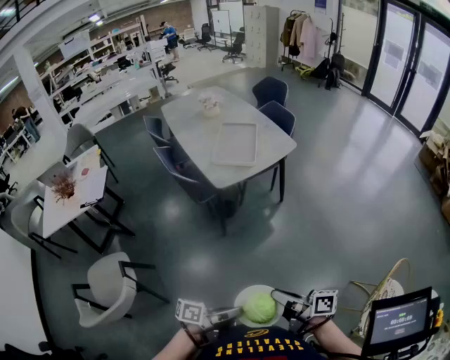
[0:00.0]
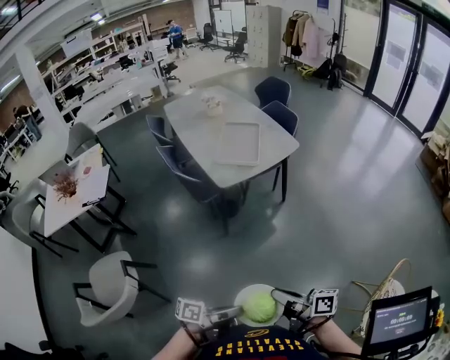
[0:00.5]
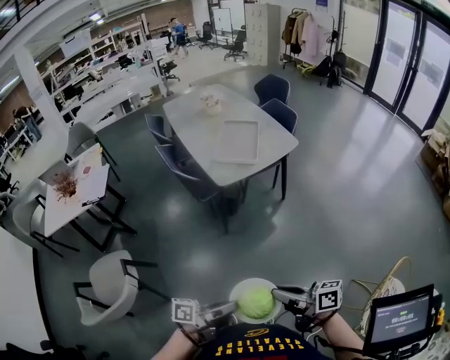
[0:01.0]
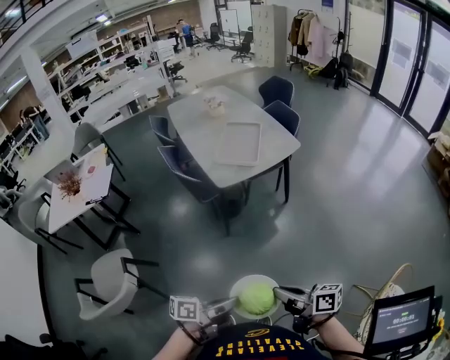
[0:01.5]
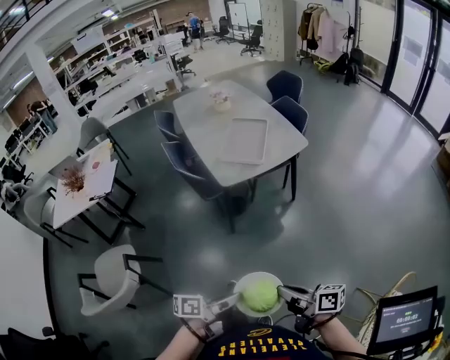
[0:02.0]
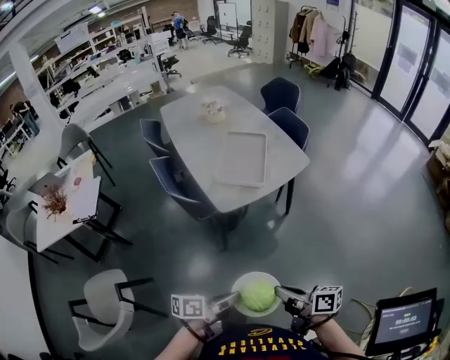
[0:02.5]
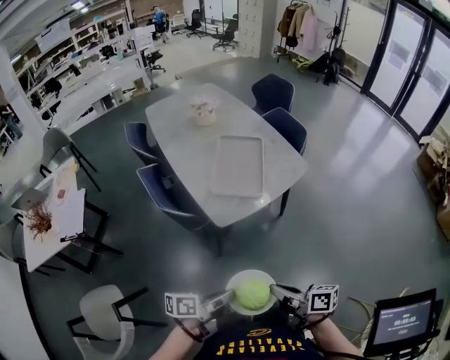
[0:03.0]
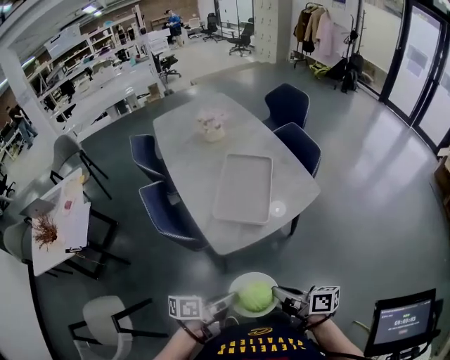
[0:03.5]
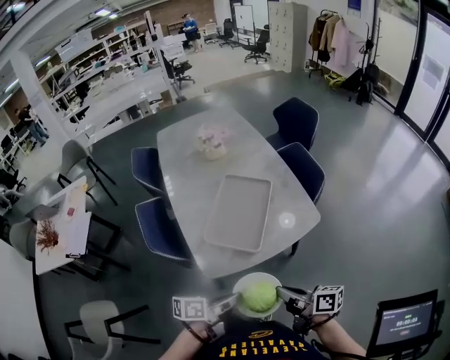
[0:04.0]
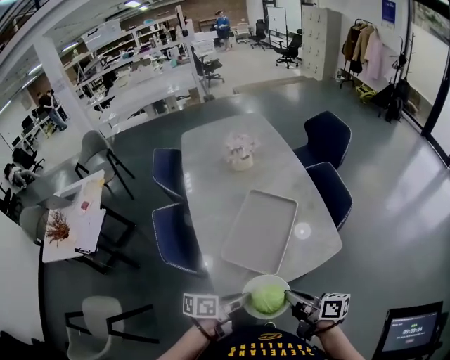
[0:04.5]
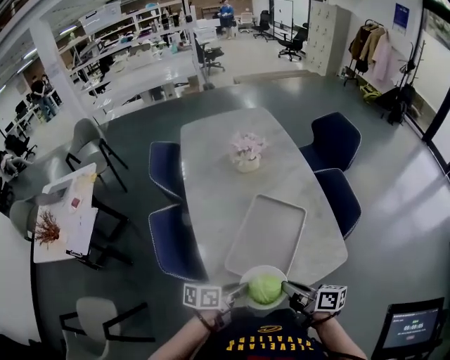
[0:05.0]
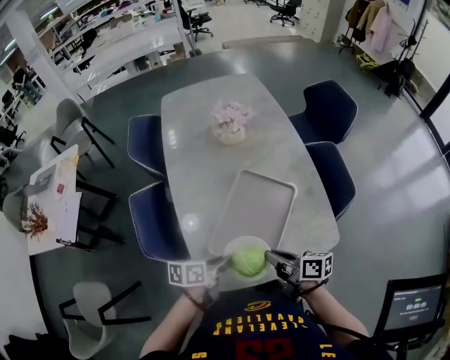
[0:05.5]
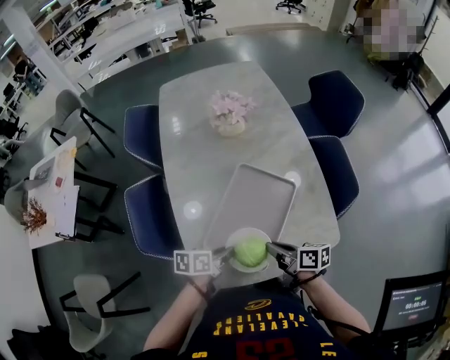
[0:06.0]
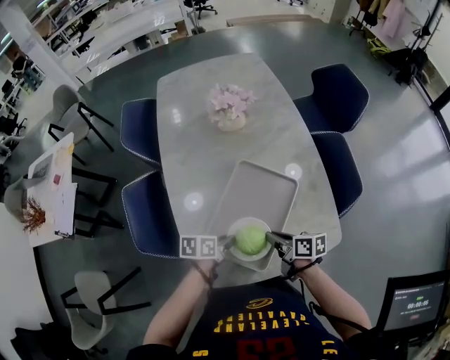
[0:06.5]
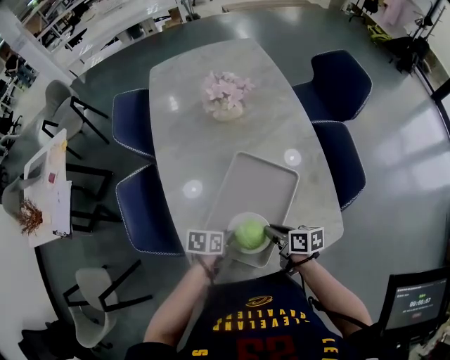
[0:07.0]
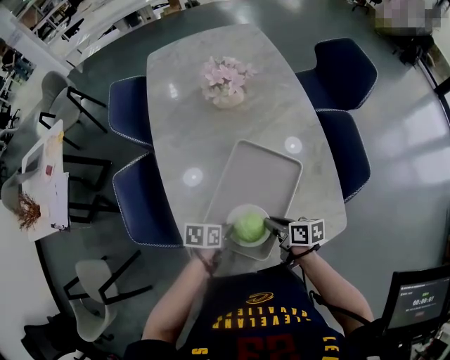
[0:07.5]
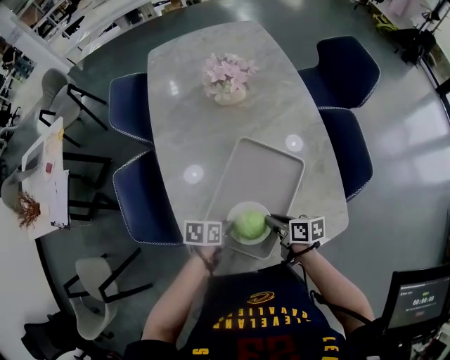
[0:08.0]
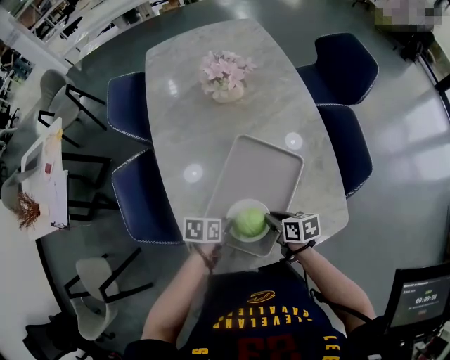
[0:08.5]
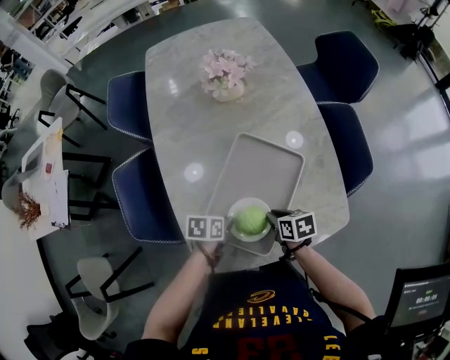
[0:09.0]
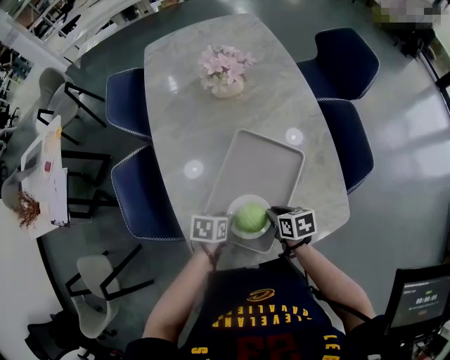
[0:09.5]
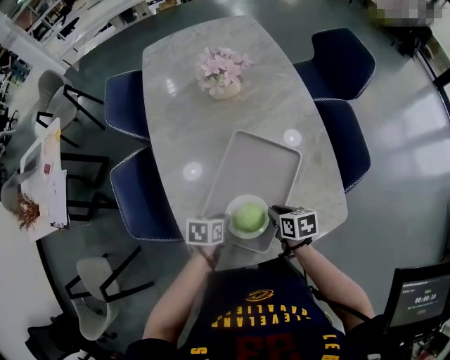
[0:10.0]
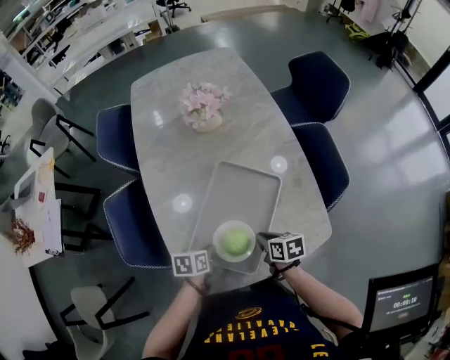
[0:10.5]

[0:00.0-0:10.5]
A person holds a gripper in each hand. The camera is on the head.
0:00.0 to 0:02.0: The right gripper ends up approximately 10 cm from where it was; the left gripper changes place by roughly 10 cm.
0:02.0 to 0:04.0: The pair of grippers is taken forward, about 50 cm.
0:04.0 to 0:06.5: The left gripper heads forward and downward, covering roughly 35 cm, and changes its angle by about 30 degrees; the right gripper travels forward by approximately 35 cm, and swivels some 20 degrees.
0:06.5 to 0:08.5: Both grippers travel together downward, roughly 5 cm.
0:08.5 to 0:10.5: The grippers move only a little.

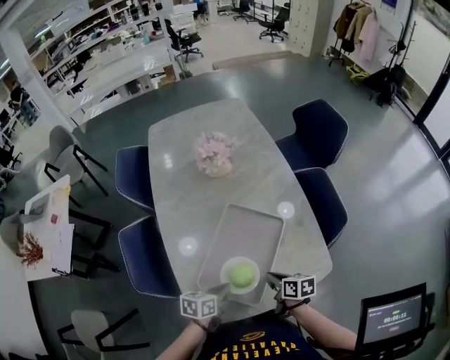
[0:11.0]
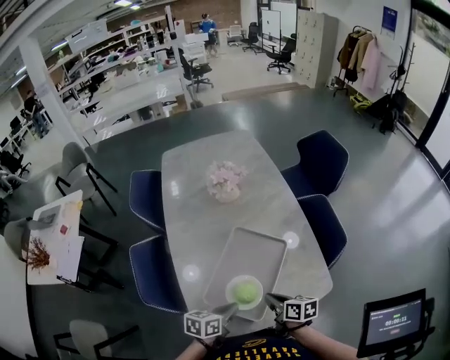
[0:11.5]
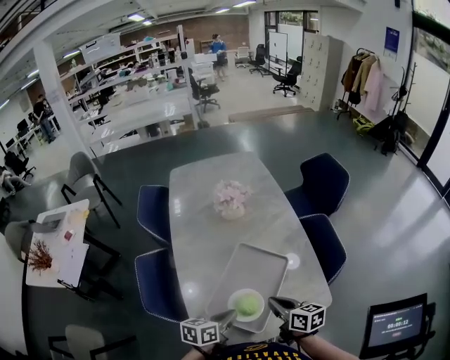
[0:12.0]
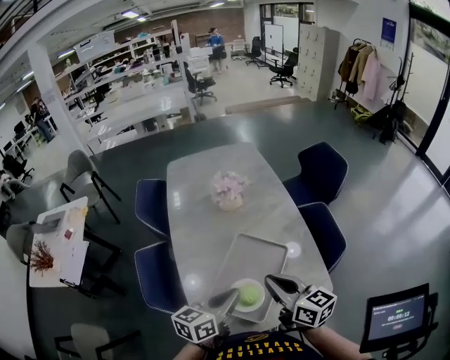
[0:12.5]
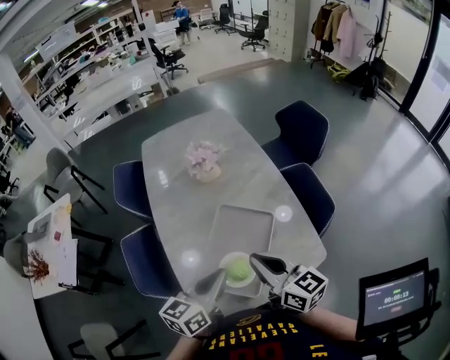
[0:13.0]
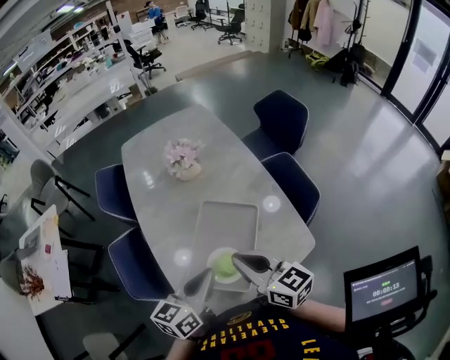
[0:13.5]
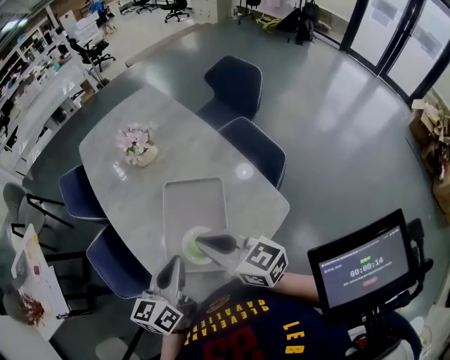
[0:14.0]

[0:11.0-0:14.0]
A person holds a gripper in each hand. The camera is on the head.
0:11.0 to 0:12.5: Both grippers travel together upward, roughly 25 cm. The right gripper points its fingers about 30 degrees further upward. Meanwhile the left gripper swivels about 30 degrees.
0:12.5 to 0:14.0: The grippers stay close to where they were, moving slightly.

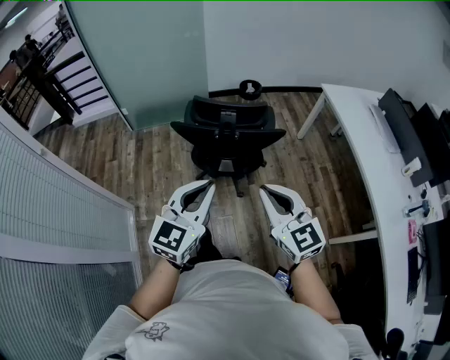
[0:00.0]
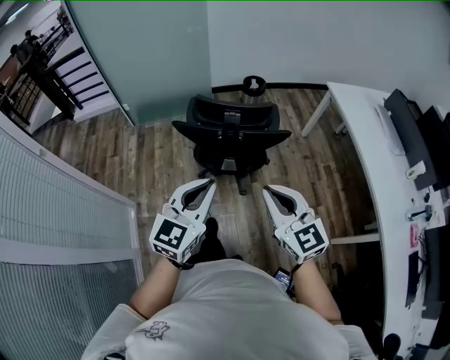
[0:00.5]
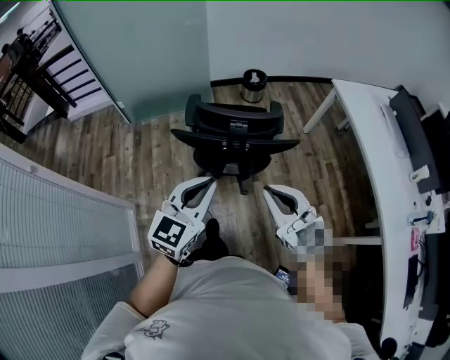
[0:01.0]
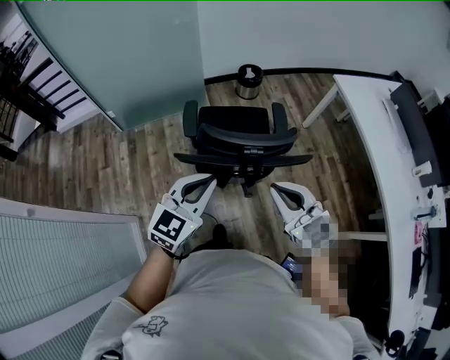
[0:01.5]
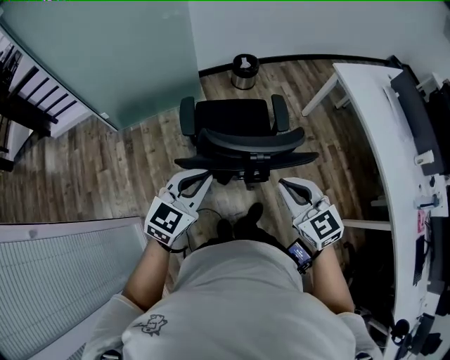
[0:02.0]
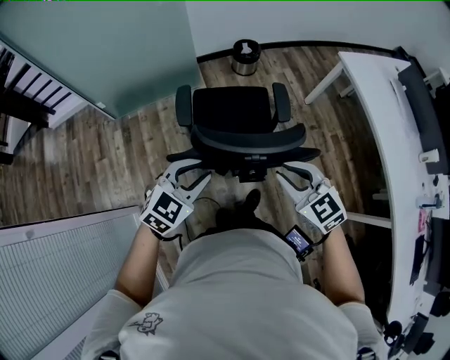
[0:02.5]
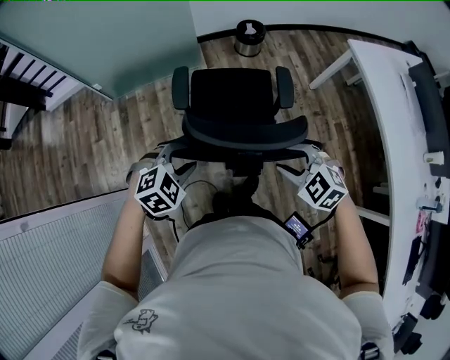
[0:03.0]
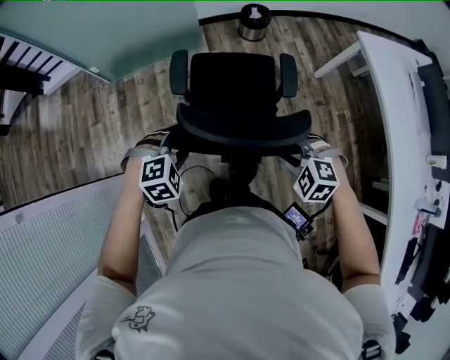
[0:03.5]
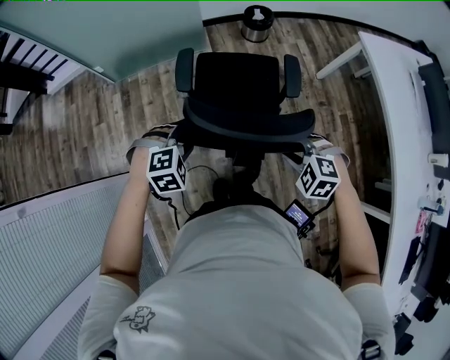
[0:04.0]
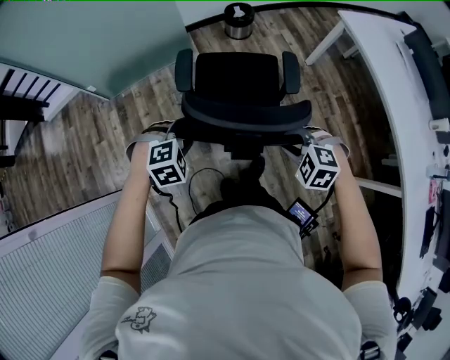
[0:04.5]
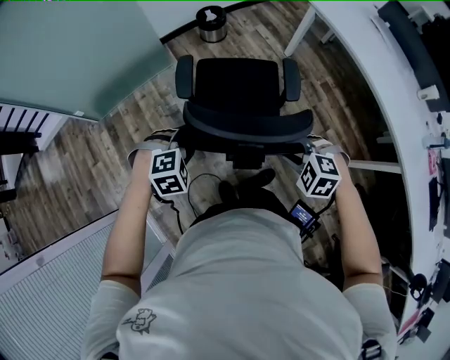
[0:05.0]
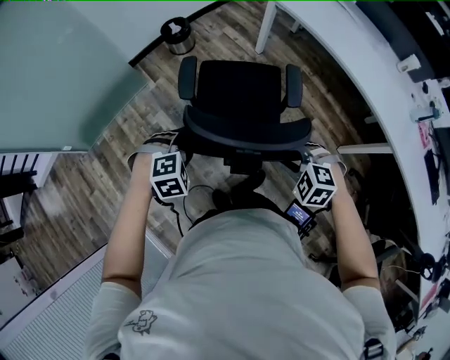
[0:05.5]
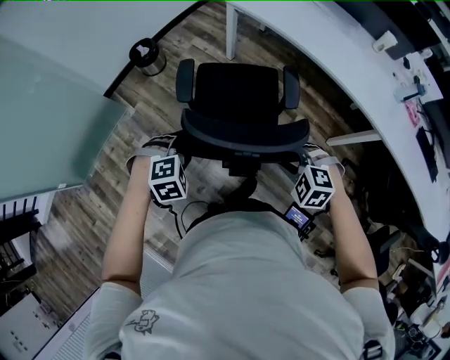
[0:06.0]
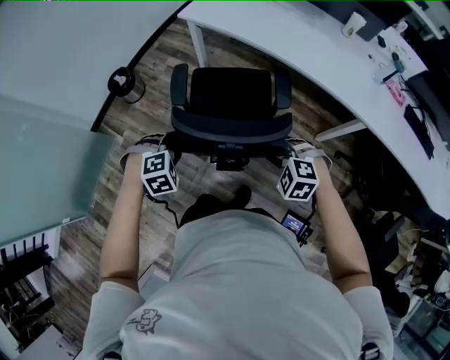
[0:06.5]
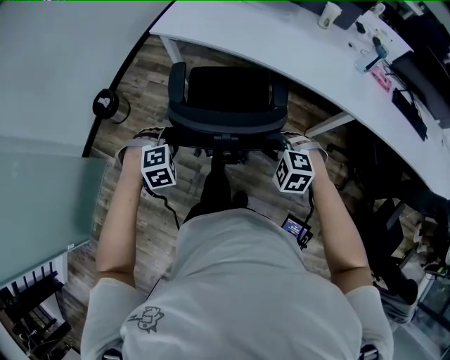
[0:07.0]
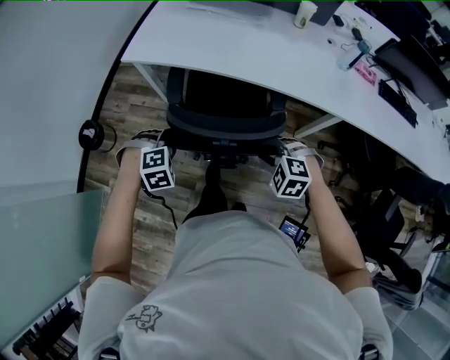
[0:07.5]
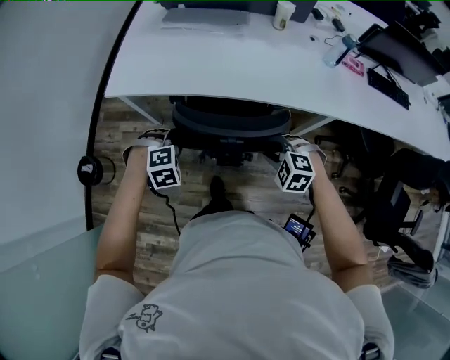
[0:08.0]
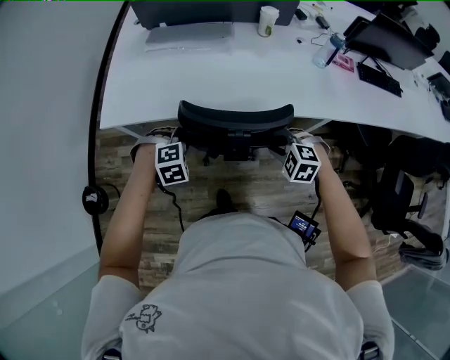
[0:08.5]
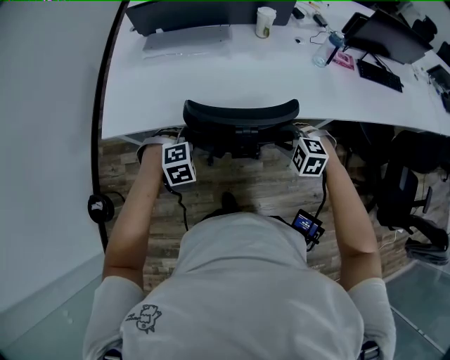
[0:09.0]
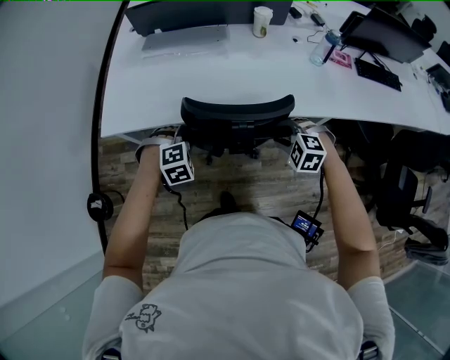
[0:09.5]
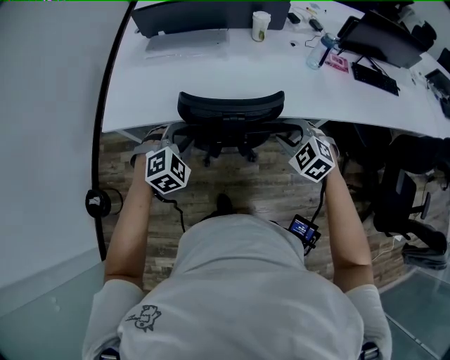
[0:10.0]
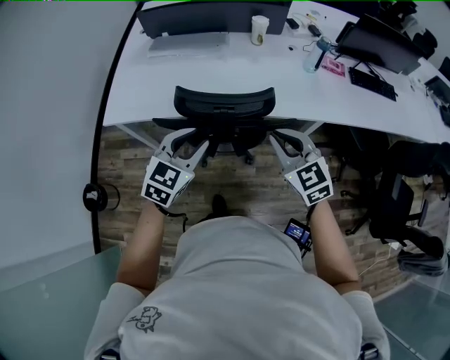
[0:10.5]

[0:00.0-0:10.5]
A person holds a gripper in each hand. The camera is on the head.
0:00.0 to 0:02.0: Both grippers move forward, roughly 30 cm. The left gripper rotates about 20 degrees.
0:02.0 to 0:04.0: Both grippers move downward, roughly 20 cm. The left gripper tips its fingers downward by about 50 degrees, and opens. The right gripper points its fingers approximately 40 degrees further downward, and opens its fingers.
0:04.0 to 0:06.5: The left gripper ends up roughly 50 cm from where it was, and rotates around the line of its fingers by roughly 40 degrees, clockwise from behind. Meanwhile the right gripper moves some 40 cm, and turns by roughly 40 degrees.
0:06.5 to 0:08.5: The left gripper moves roughly 50 cm, and rotates some 30 degrees. Meanwhile the right gripper ends up roughly 40 cm from where it was, and rotates approximately 30 degrees.
0:08.5 to 0:10.5: The right gripper heads upward, covering some 20 cm, and tilts its fingers roughly 40 degrees upward. The left gripper travels upward, to the right and backward by about 25 cm, and tips its fingers upward by about 40 degrees.

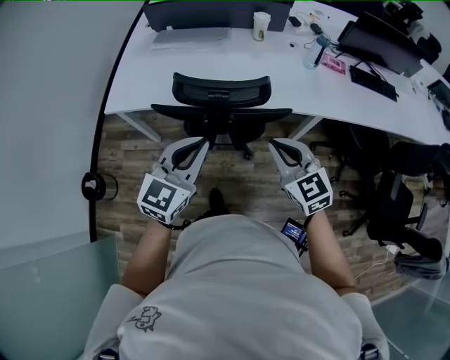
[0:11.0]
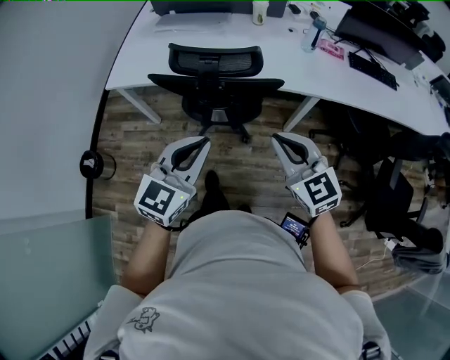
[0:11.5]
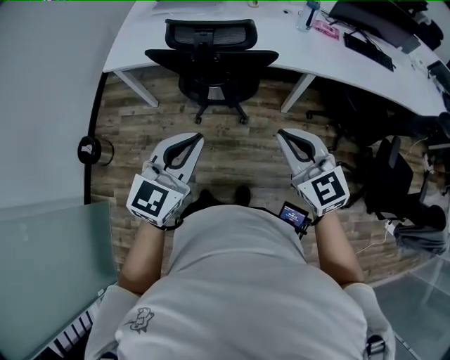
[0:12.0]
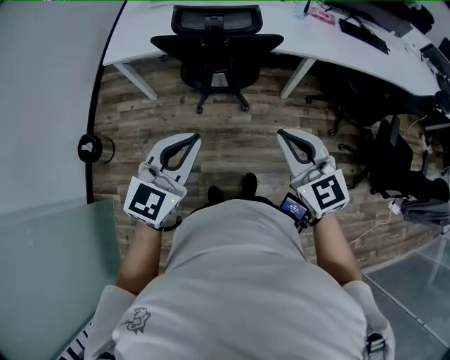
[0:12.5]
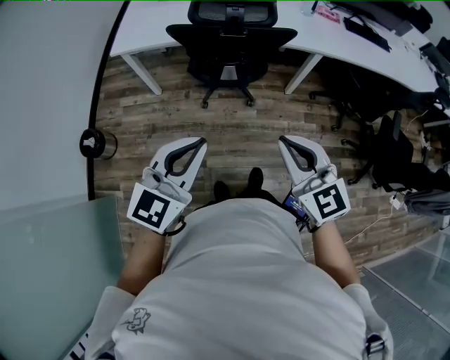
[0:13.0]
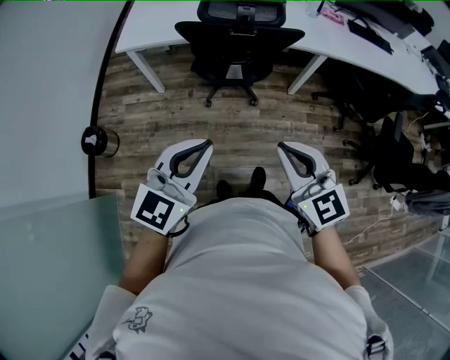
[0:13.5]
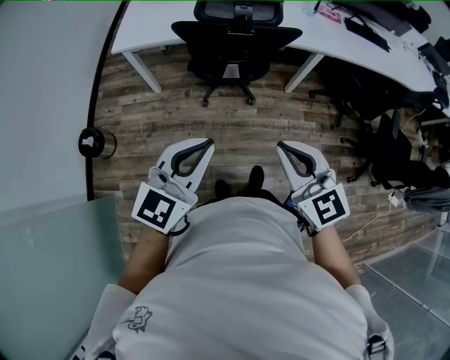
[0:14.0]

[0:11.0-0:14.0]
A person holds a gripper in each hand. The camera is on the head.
0:11.0 to 0:12.5: The two grippers go approximately 30 cm backward.
0:12.5 to 0:14.0: The two grippers go some 10 cm to the left and backward.
